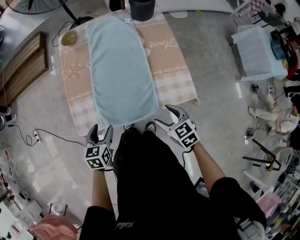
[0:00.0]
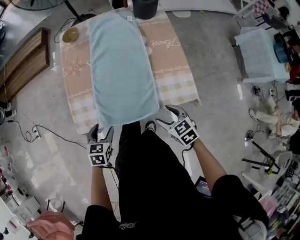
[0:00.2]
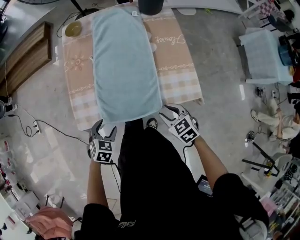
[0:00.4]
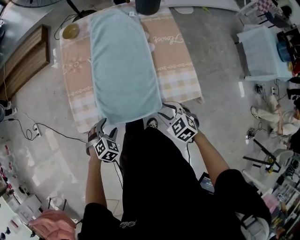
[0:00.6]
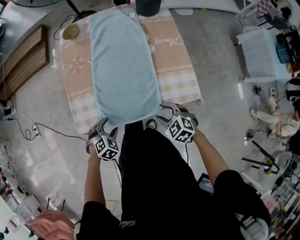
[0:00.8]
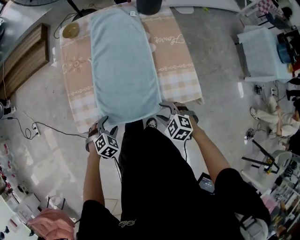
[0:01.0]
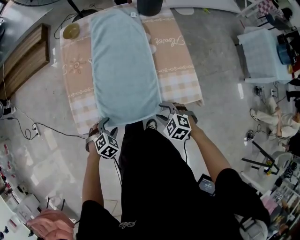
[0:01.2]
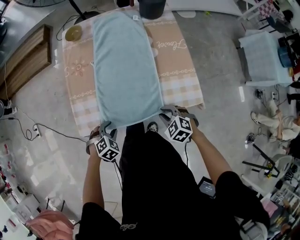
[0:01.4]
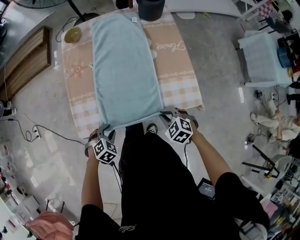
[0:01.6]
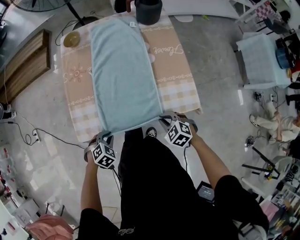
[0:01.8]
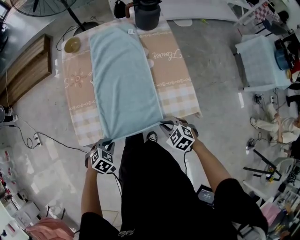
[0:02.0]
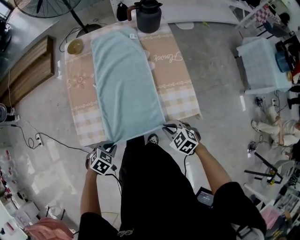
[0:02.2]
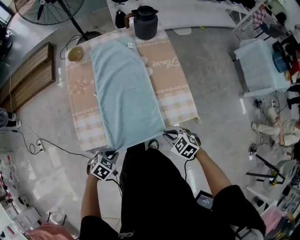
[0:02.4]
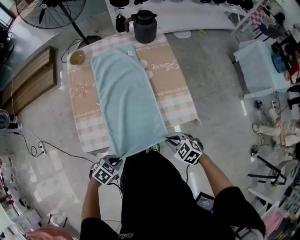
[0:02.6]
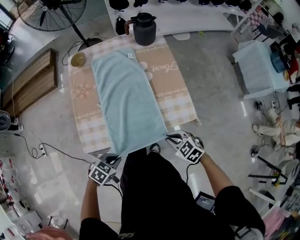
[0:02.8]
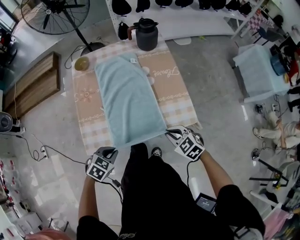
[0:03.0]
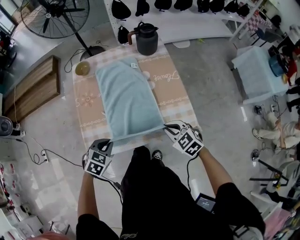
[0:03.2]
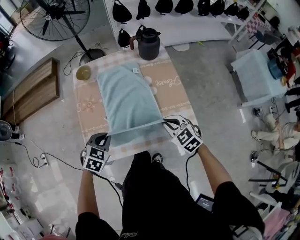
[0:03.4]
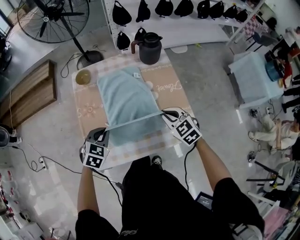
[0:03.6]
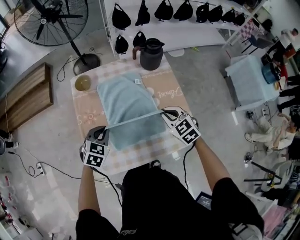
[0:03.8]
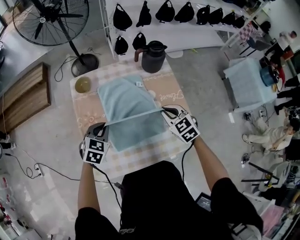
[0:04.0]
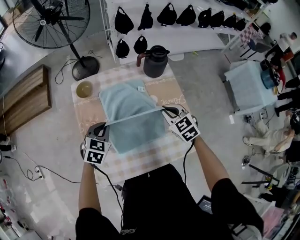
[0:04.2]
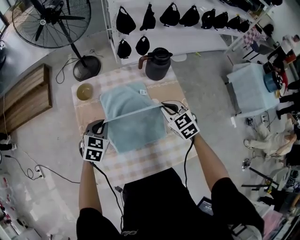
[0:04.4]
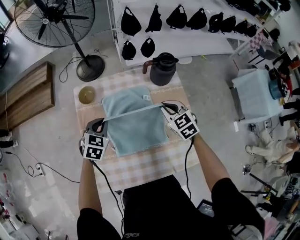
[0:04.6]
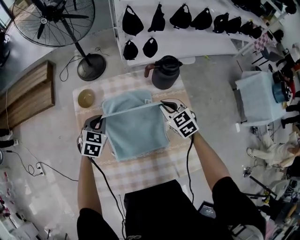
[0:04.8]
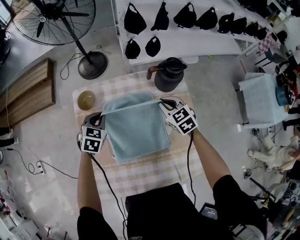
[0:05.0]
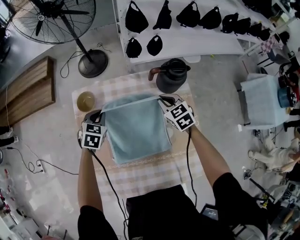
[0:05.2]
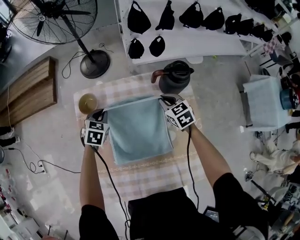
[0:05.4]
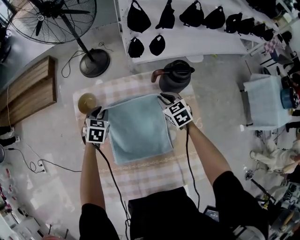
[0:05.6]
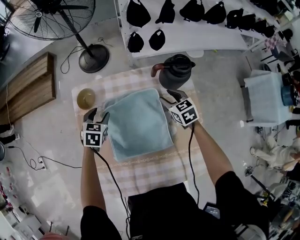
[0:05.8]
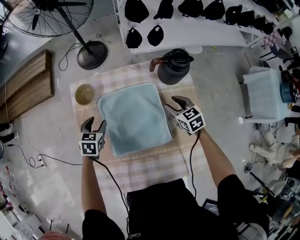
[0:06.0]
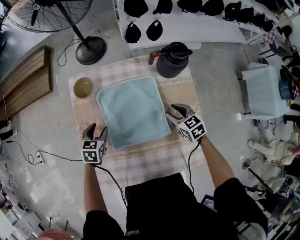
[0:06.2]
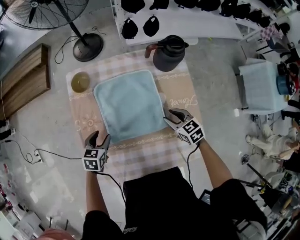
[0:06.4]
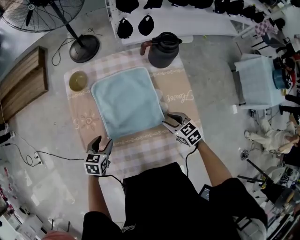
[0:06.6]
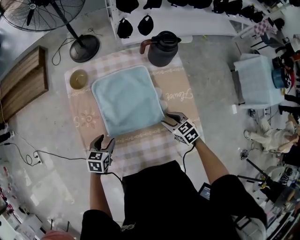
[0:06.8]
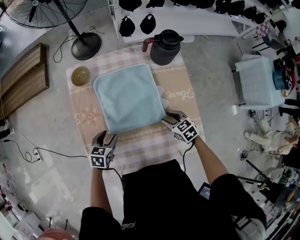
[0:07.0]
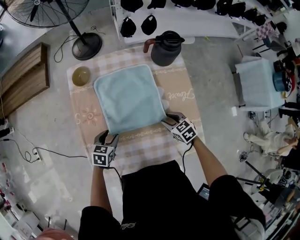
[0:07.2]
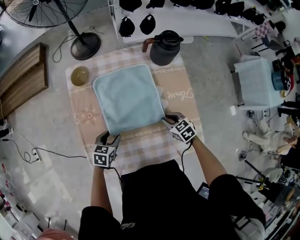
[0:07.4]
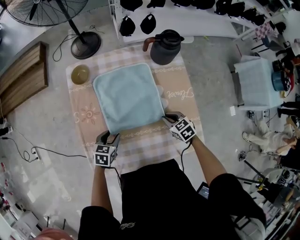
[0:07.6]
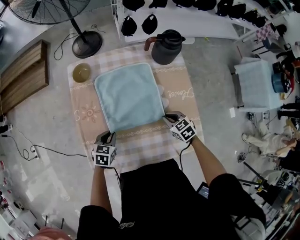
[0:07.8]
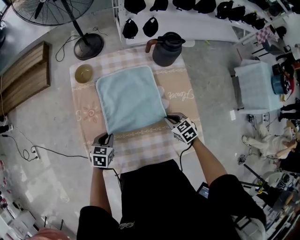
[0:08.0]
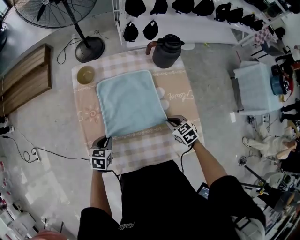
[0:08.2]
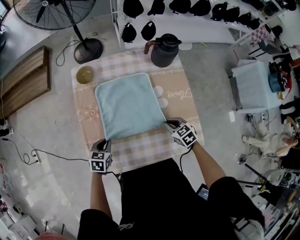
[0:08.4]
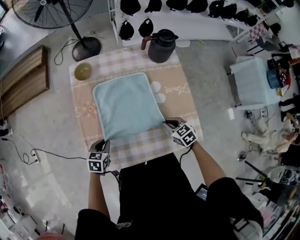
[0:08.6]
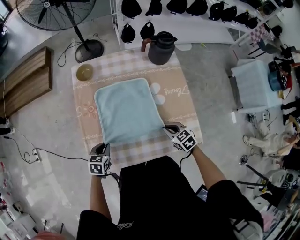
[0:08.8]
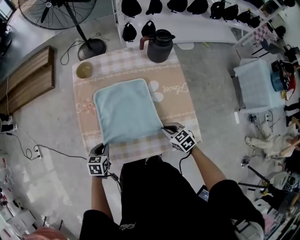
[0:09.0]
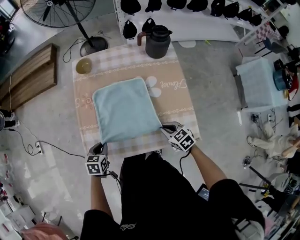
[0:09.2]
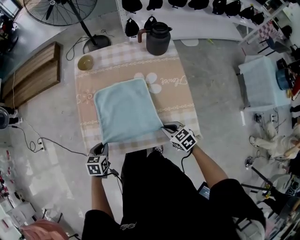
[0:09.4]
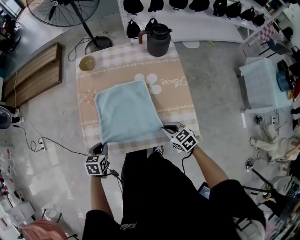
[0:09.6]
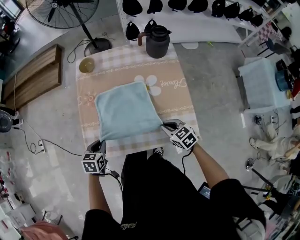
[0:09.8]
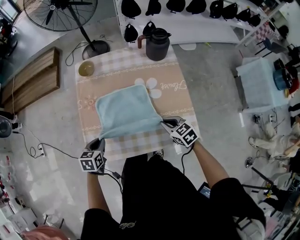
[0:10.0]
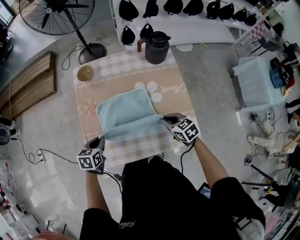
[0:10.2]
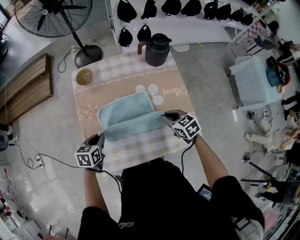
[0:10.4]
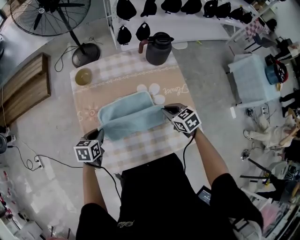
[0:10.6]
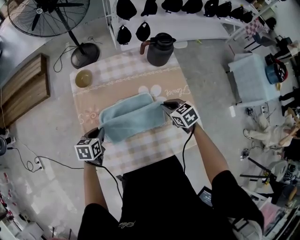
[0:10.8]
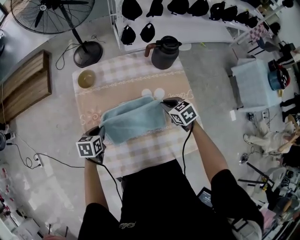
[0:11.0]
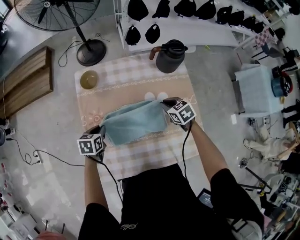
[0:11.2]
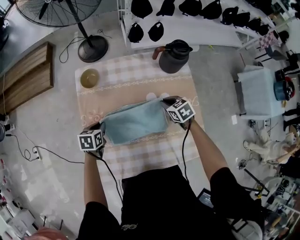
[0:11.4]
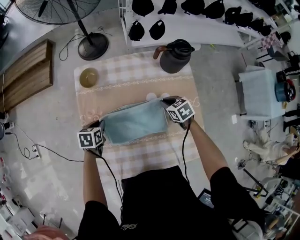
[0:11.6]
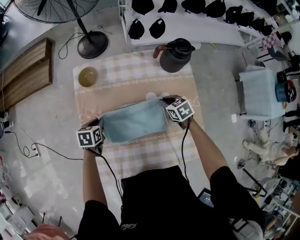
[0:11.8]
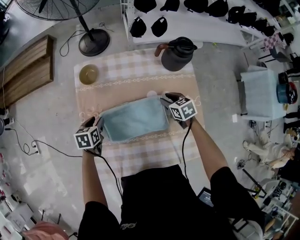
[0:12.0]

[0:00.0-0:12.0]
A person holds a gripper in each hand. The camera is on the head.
0:00.0 to 0:01.6: Both grippers move downward, about 10 cm. The right gripper turns by approximately 30 degrees, and closes up. The left gripper twists roughly 50 degrees clockwise, seen from behind, and closes.
0:01.6 to 0:03.0: Both grippers travel together upward, approximately 10 cm. The left gripper swivels approximately 20 degrees, and closes its fingers.
0:03.0 to 0:04.4: Both grippers move forward, some 35 cm. The left gripper turns by roughly 30 degrees.
0:04.4 to 0:06.0: The grippers both shift downward and forward by approximately 15 cm. The left gripper rotates roughly 20 degrees, and opens its fingers. Meanwhile the right gripper opens up.
0:06.0 to 0:07.6: The two grippers go some 20 cm backward. The right gripper closes.
0:07.6 to 0:09.0: The left gripper travels backward and to the left by some 15 cm, and closes up. The right gripper is displaced backward by some 10 cm.
0:09.0 to 0:10.4: The two grippers go approximately 10 cm forward and upward.
0:10.4 to 0:12.0: The two grippers go about 20 cm forward and downward. The left gripper opens.

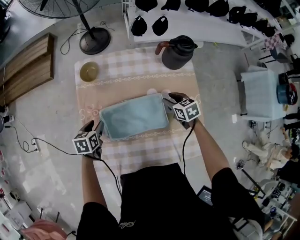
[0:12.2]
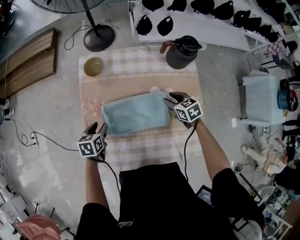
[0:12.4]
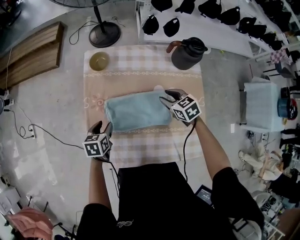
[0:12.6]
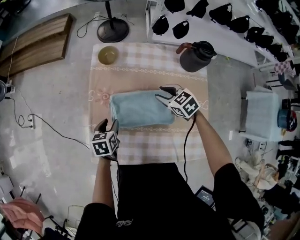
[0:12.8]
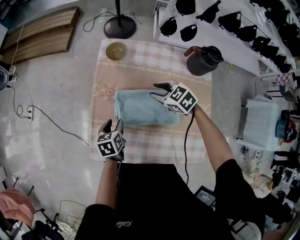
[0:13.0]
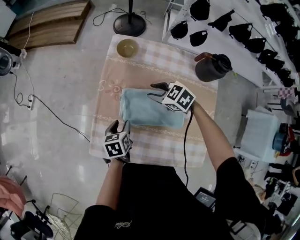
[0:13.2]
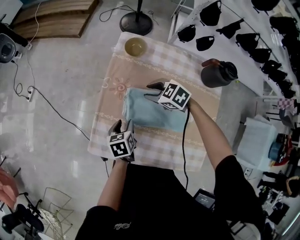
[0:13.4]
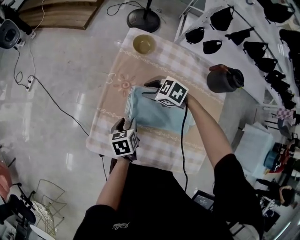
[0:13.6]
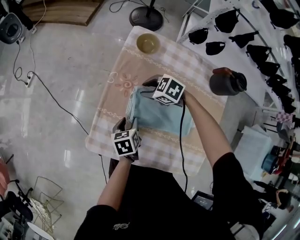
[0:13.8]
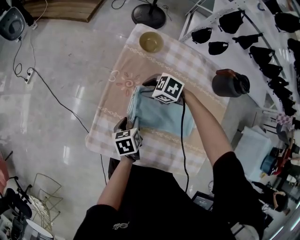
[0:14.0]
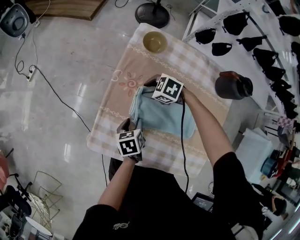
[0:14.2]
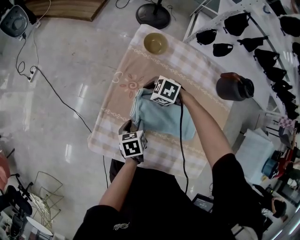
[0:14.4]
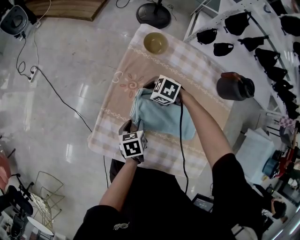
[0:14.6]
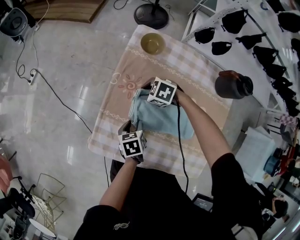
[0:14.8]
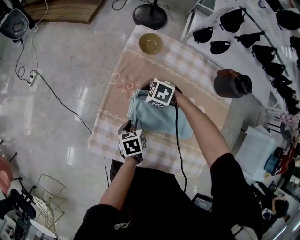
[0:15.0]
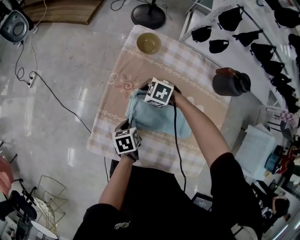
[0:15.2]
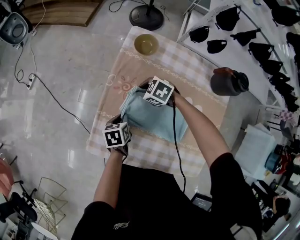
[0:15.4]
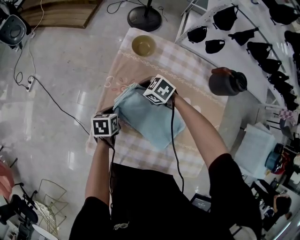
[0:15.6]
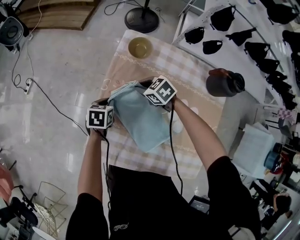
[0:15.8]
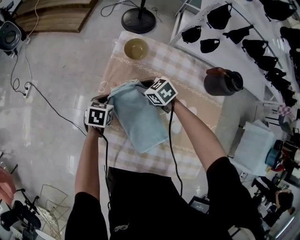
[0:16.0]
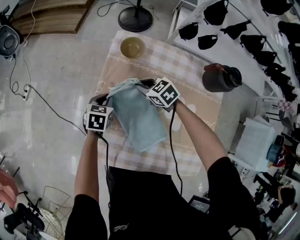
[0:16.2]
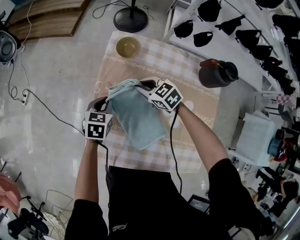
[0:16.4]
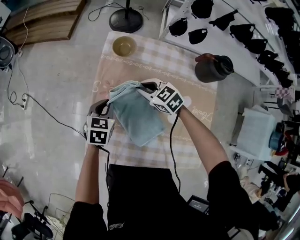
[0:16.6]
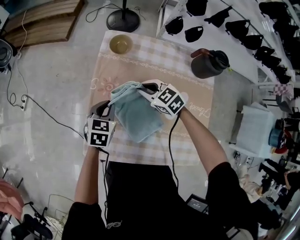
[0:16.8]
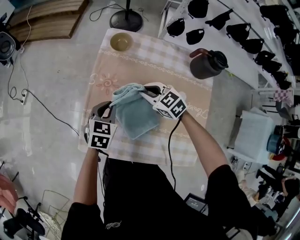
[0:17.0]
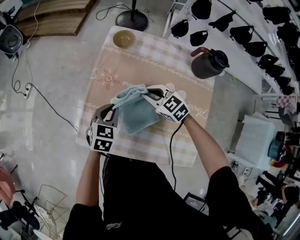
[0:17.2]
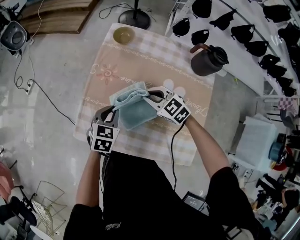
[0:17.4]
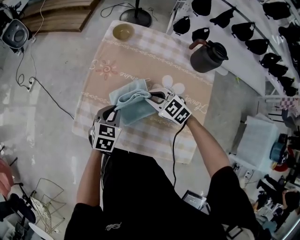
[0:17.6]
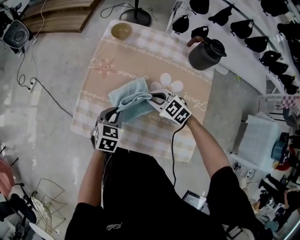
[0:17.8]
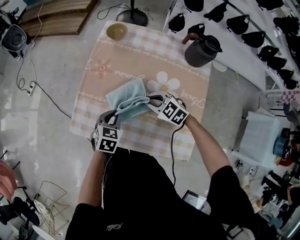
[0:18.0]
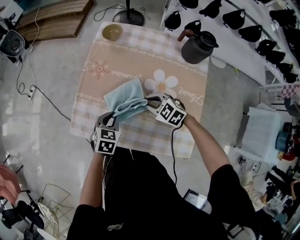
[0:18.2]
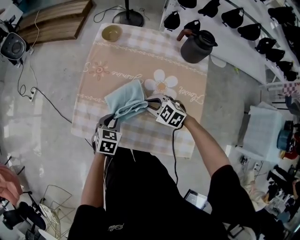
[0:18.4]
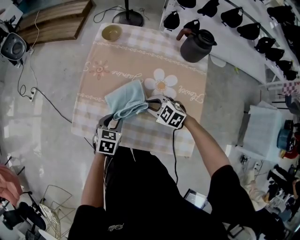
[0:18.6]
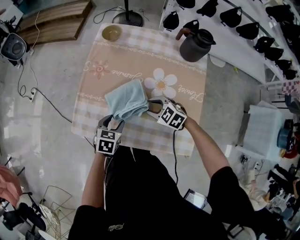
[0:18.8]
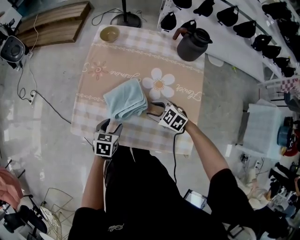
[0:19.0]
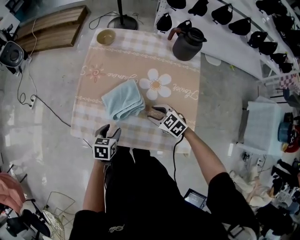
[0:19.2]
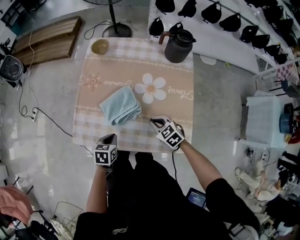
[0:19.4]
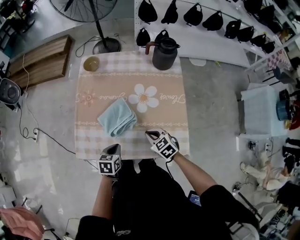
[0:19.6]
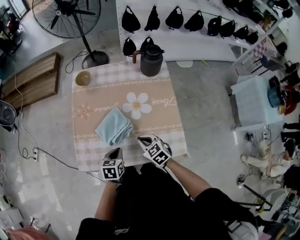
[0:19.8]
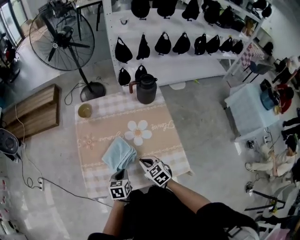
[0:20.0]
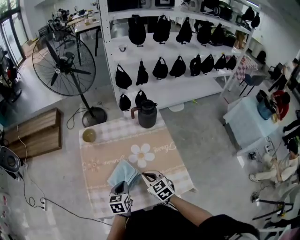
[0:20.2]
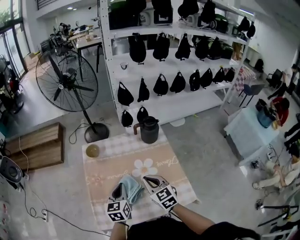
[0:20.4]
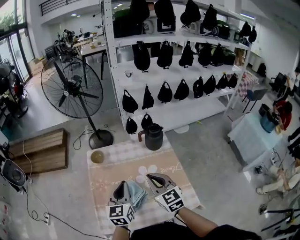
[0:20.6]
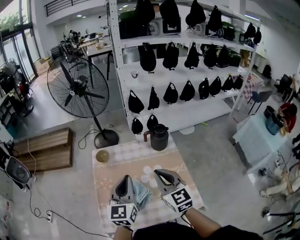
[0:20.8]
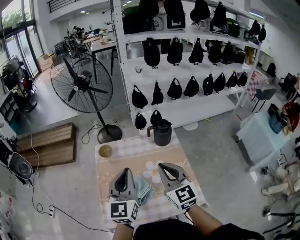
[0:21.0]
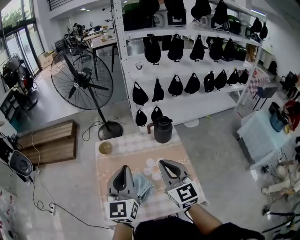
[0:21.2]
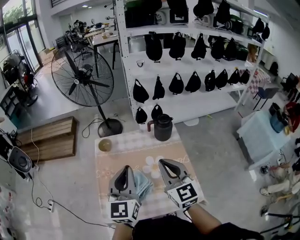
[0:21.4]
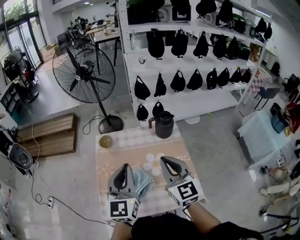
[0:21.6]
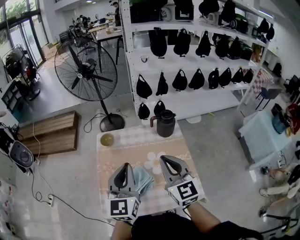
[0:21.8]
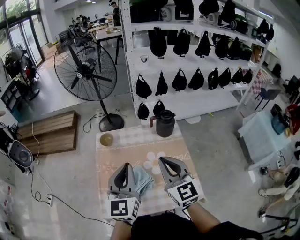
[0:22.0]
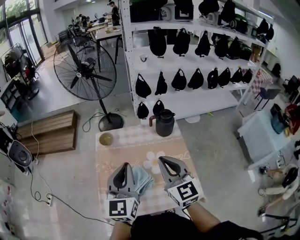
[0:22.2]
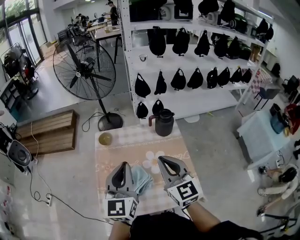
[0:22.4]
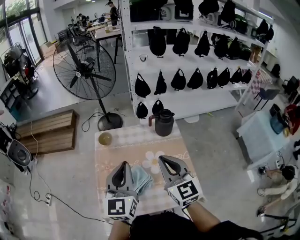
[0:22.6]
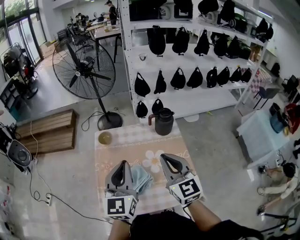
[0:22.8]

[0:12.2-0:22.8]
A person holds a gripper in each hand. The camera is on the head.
0:12.2 to 0:13.8: The right gripper goes upward and returns, some 5 cm each way, and changes its angle by some 70 degrees; the left gripper changes place by about 10 cm, and turns by about 40 degrees.
0:13.8 to 0:15.2: The left gripper closes its fingers.
0:15.2 to 0:16.8: Both grippers move upward, some 10 cm. The left gripper twists some 40 degrees clockwise, seen from behind. Meanwhile the right gripper turns by about 40 degrees.
0:16.8 to 0:18.2: The two grippers go some 20 cm backward.
0:18.2 to 0:19.8: The left gripper ends up some 10 cm from where it was, and opens, then closes again. Meanwhile the right gripper changes place by some 10 cm, rotates about 40 degrees, and opens, then closes again.
0:19.8 to 0:21.2: The grippers both shift upward by roughly 35 cm. The right gripper points its fingers about 40 degrees further upward; the left gripper angles its fingers upward, by some 50 degrees.
0:21.2 to 0:22.8: There are only small adjustments of the grippers.

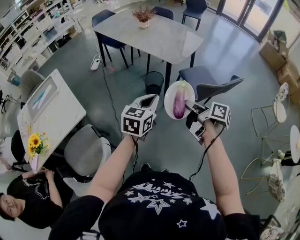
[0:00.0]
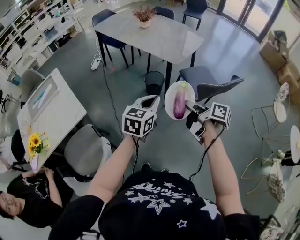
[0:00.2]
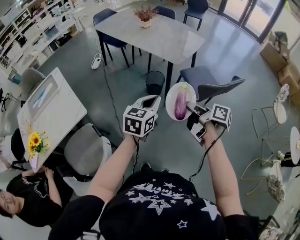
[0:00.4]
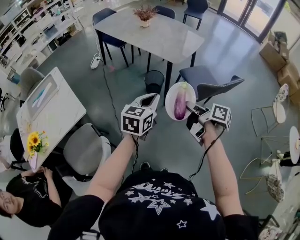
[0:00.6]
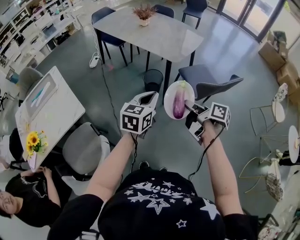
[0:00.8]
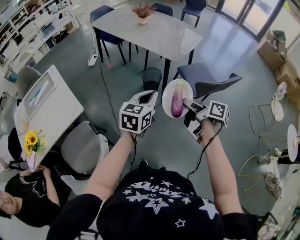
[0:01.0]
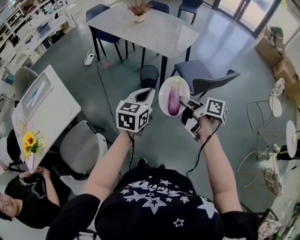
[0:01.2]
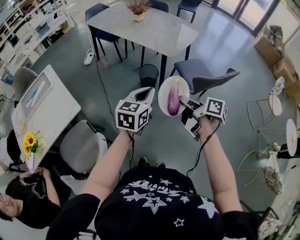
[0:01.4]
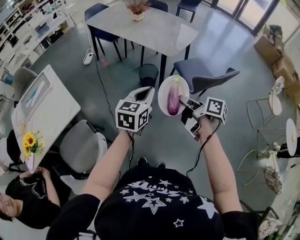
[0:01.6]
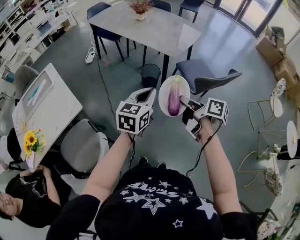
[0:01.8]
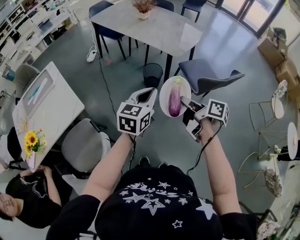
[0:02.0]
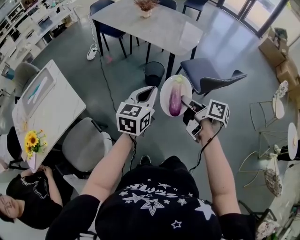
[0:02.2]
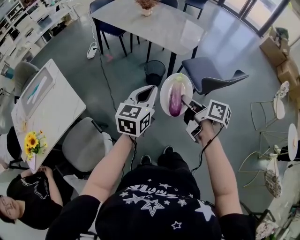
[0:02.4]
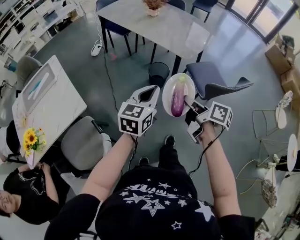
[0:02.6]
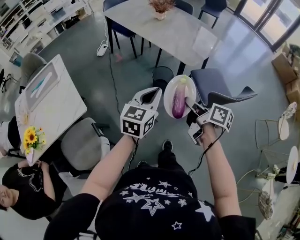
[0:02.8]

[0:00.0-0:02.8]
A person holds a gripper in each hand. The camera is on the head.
0:00.0 to 0:01.4: The two grippers keep their place.
0:01.4 to 0:02.8: The grippers both shift forward by about 10 cm.
